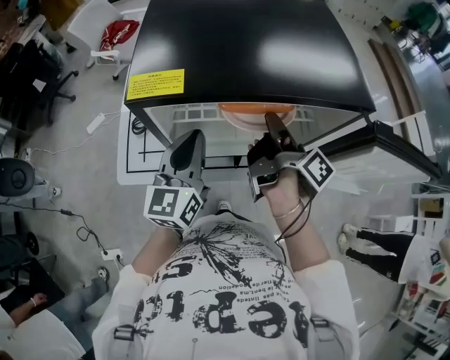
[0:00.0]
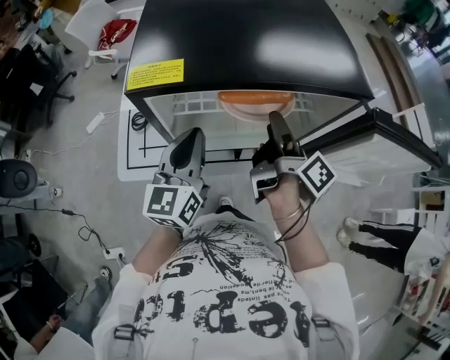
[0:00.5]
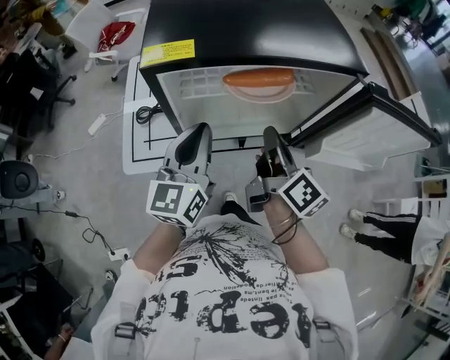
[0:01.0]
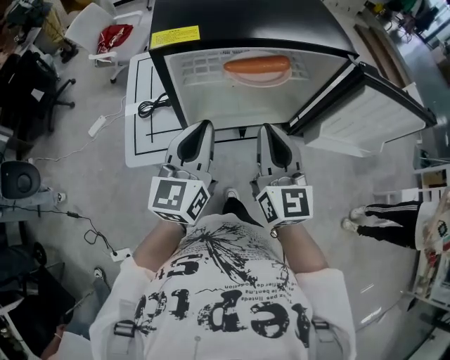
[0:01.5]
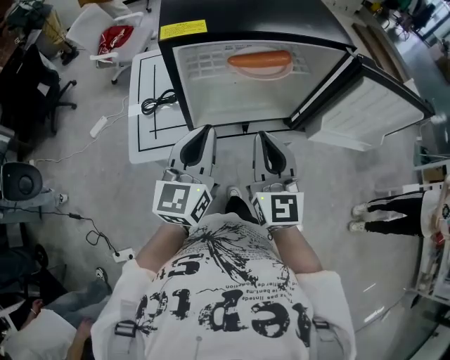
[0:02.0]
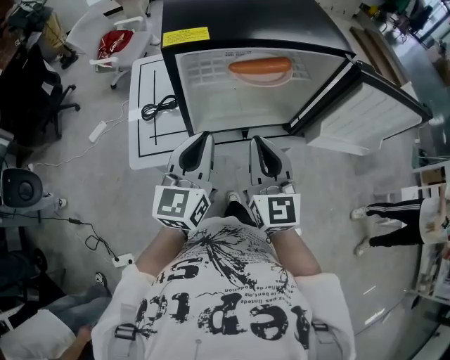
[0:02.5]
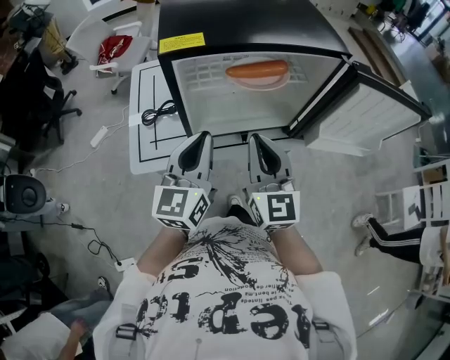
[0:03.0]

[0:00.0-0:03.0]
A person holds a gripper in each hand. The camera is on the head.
0:00.0 to 0:01.5: The left gripper moves approximately 10 cm.

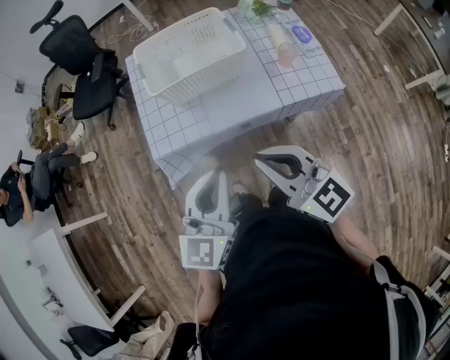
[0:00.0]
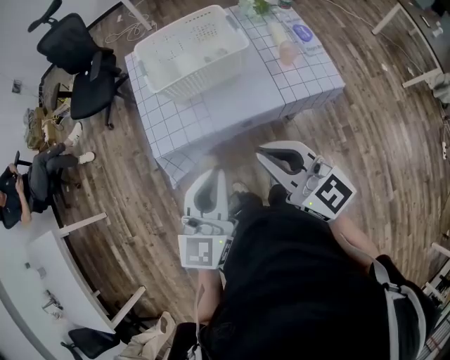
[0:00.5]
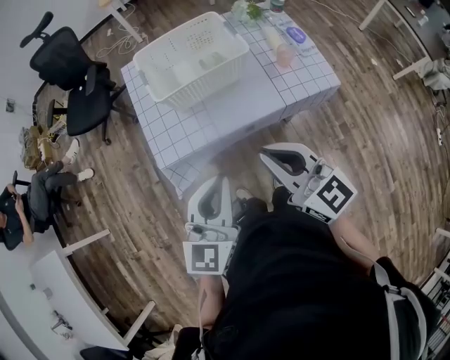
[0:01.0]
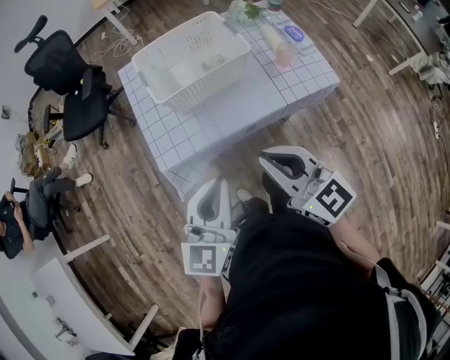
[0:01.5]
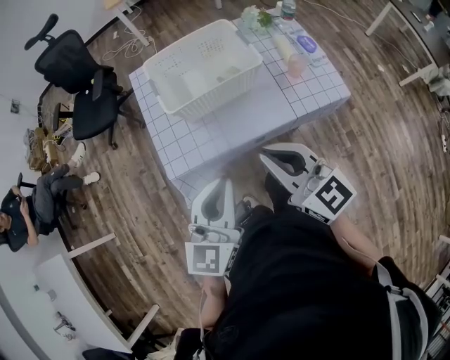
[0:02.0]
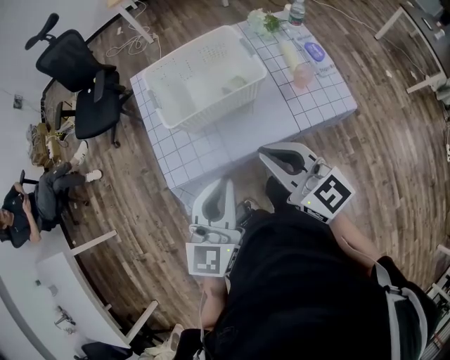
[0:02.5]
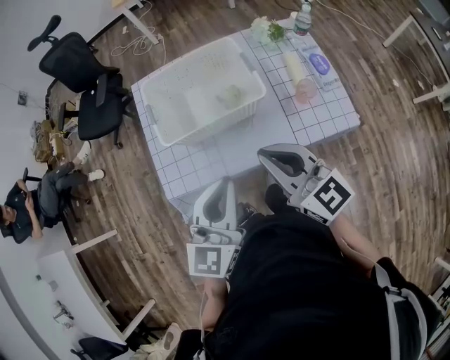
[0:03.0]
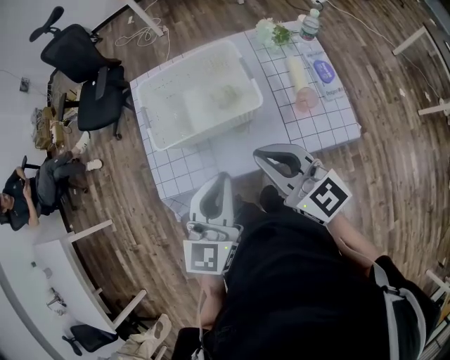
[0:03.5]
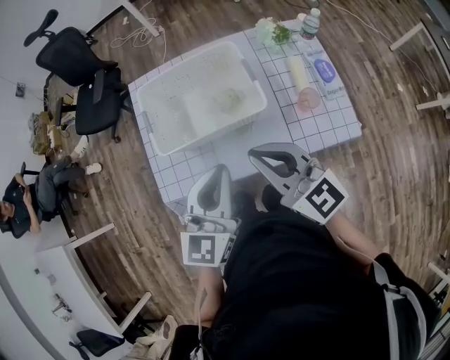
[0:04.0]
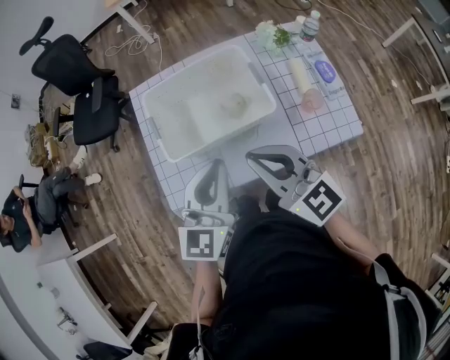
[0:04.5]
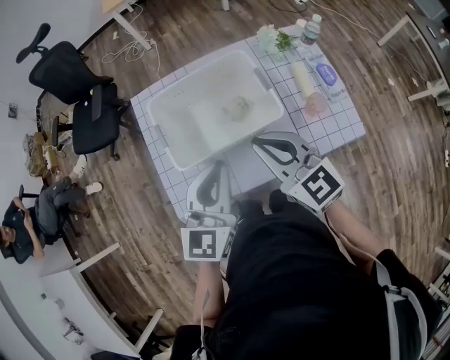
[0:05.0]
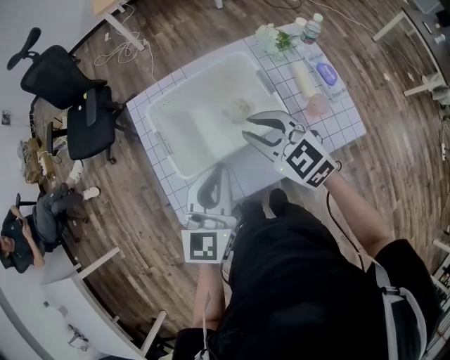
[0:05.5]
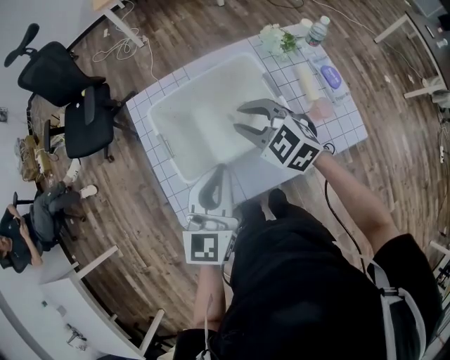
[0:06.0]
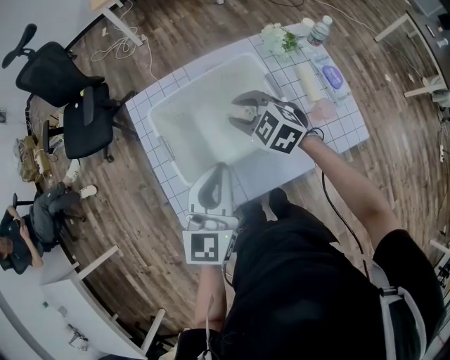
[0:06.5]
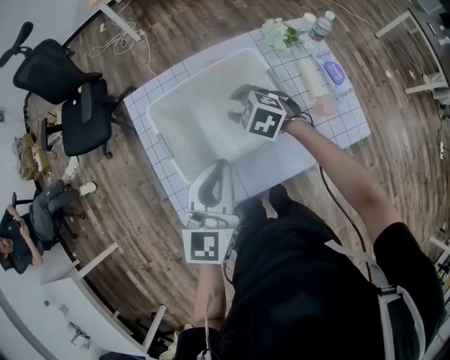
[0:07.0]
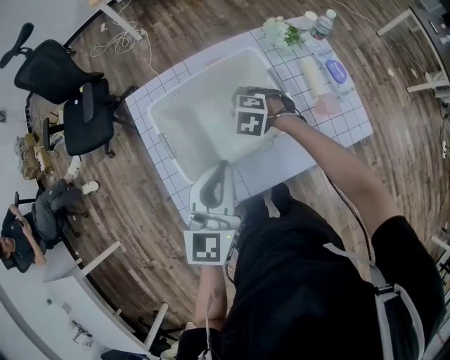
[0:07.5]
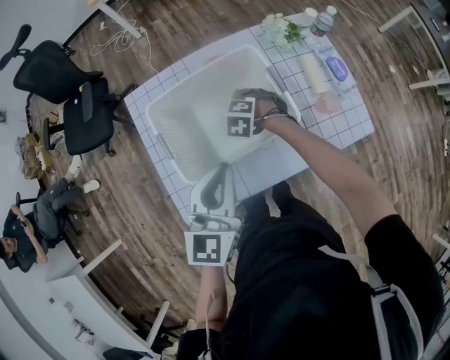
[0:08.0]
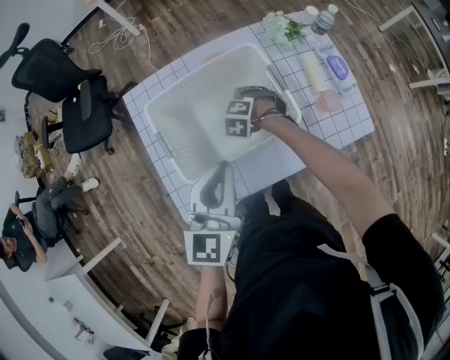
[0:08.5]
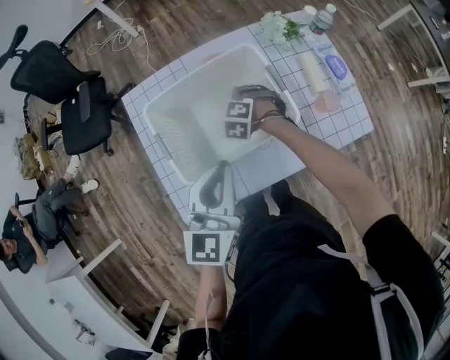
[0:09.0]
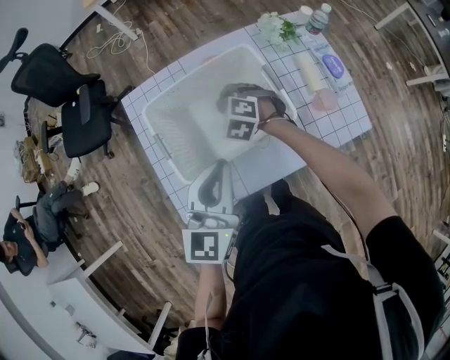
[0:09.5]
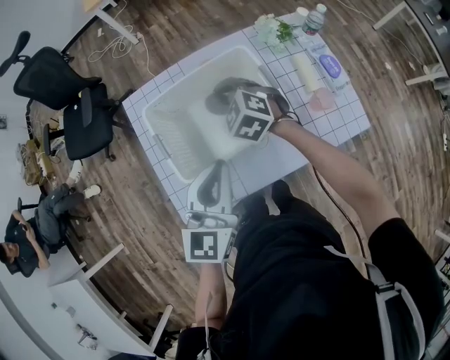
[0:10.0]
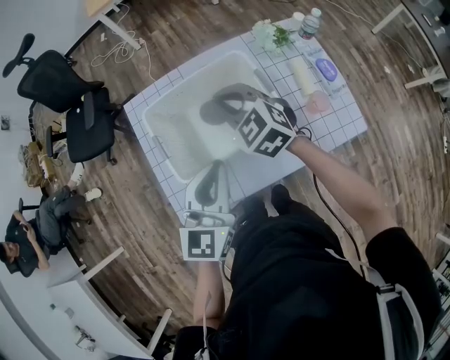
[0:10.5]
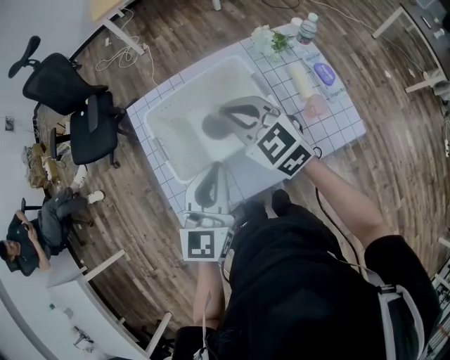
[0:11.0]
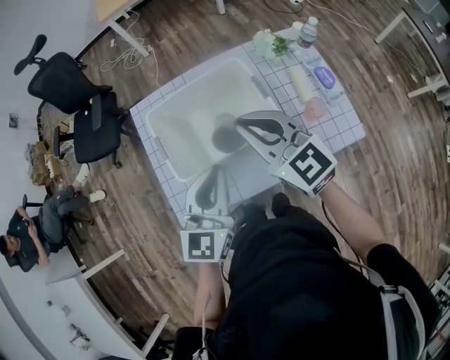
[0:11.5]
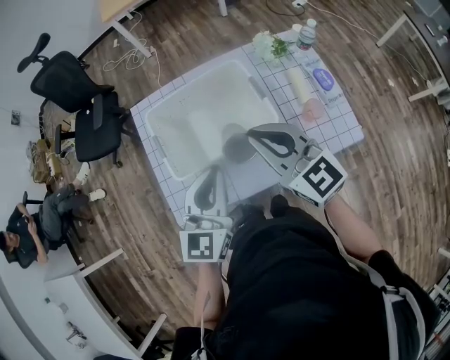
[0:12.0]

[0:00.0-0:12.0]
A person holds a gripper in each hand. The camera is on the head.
0:00.0 to 0:02.0: The left gripper is displaced to the left and forward by approximately 10 cm. Meanwhile the right gripper shifts roughly 5 cm forward.
0:02.0 to 0:04.0: The grippers both shift forward and to the right by some 20 cm.
0:04.0 to 0:06.0: The right gripper shifts some 20 cm forward and downward, tilts its fingers about 30 degrees downward, and opens up, while the left gripper moves forward and to the left, some 10 cm.
0:06.0 to 0:08.0: The right gripper is displaced downward by some 20 cm, and angles its fingers downward, by about 40 degrees.
0:08.0 to 0:10.0: The right gripper shifts some 15 cm upward, rotates roughly 30 degrees, and closes its fingers.
0:10.0 to 0:12.0: The right gripper travels backward and upward by roughly 25 cm, and angles its fingers upward, by about 30 degrees.

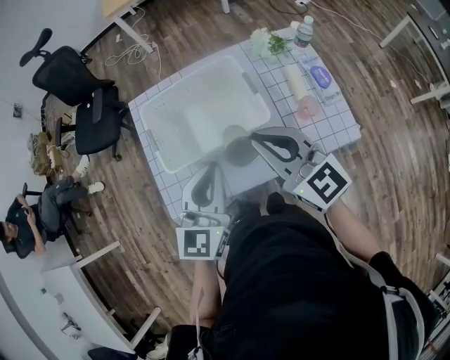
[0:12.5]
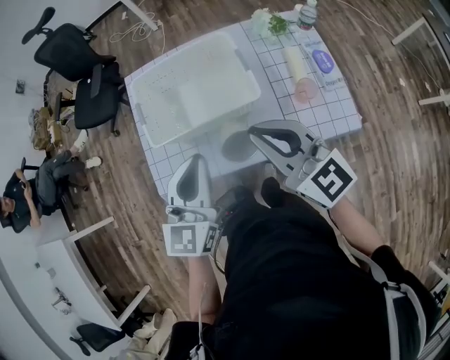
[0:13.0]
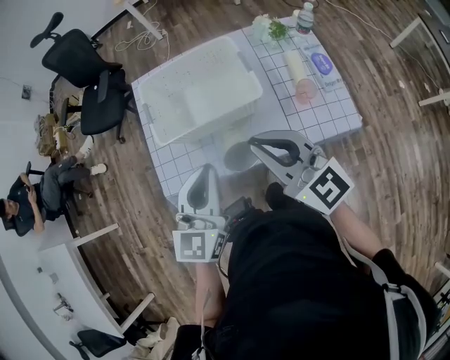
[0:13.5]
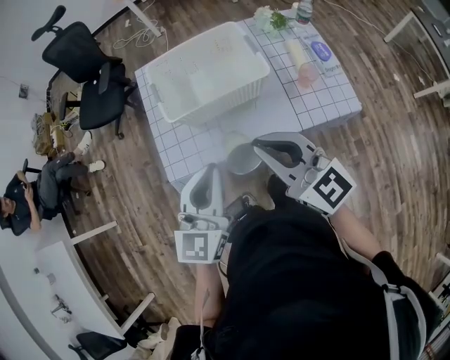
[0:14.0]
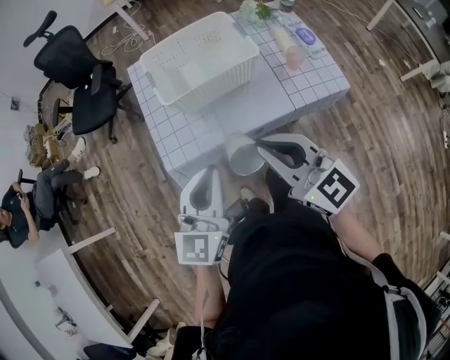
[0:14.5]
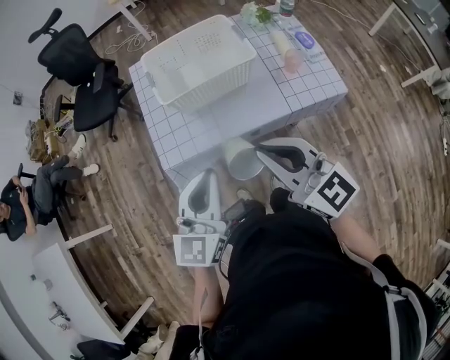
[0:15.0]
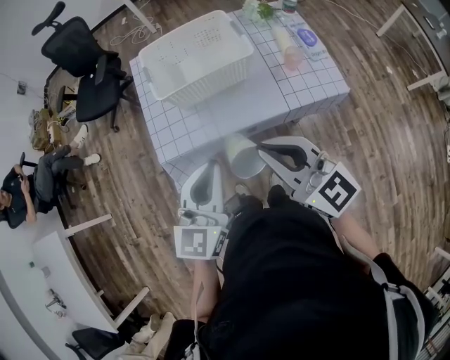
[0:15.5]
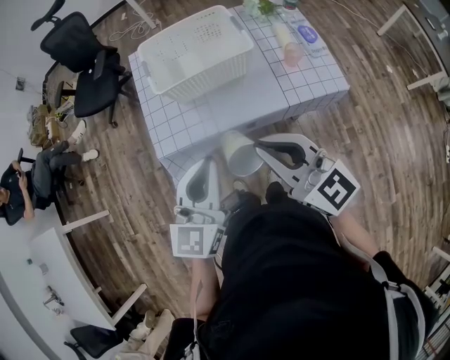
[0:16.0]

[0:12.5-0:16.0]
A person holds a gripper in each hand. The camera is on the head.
0:12.5 to 0:14.5: The two grippers go some 25 cm backward and to the left.
0:14.5 to 0:16.0: The grippers stay close to where they were, moving slightly.

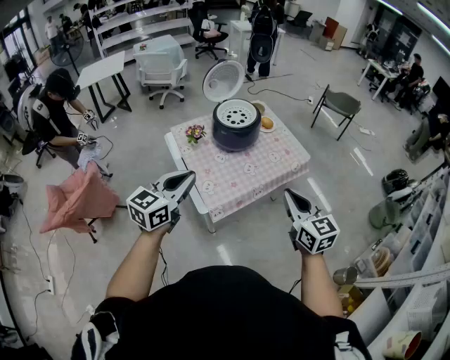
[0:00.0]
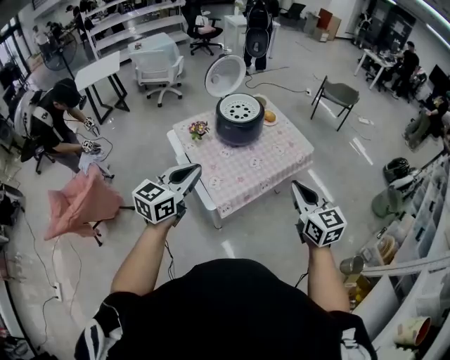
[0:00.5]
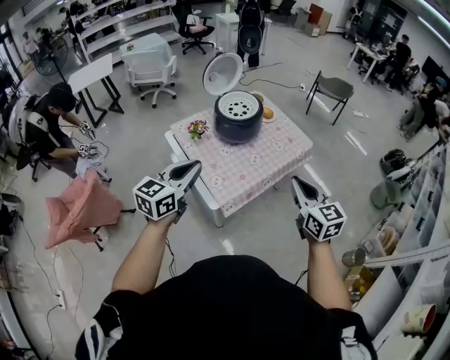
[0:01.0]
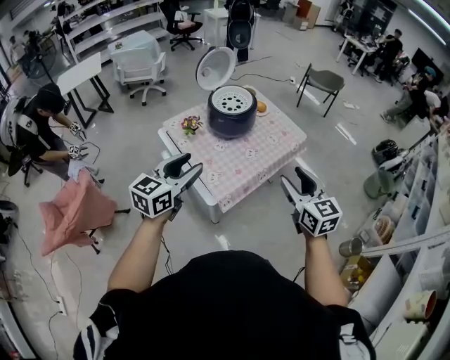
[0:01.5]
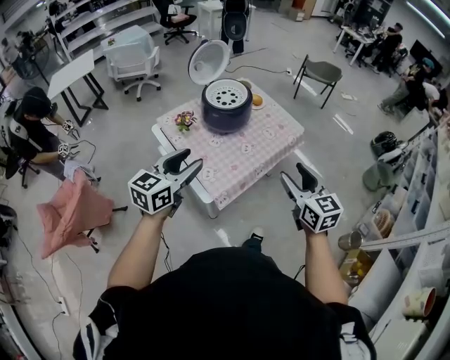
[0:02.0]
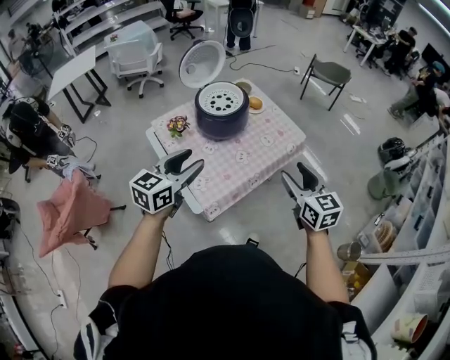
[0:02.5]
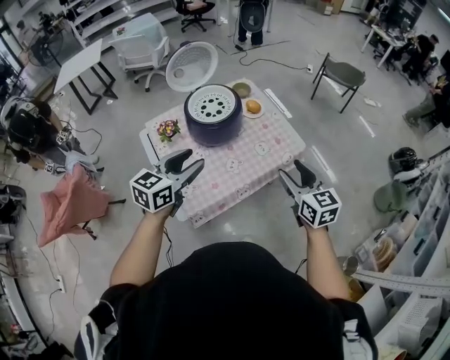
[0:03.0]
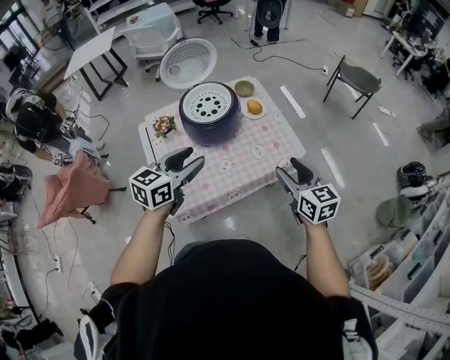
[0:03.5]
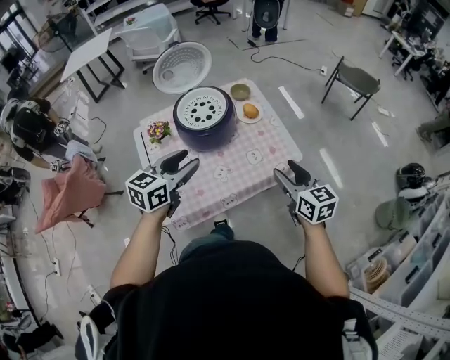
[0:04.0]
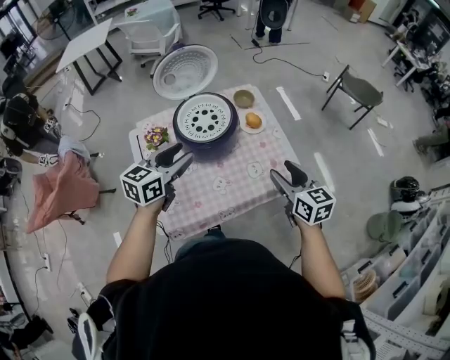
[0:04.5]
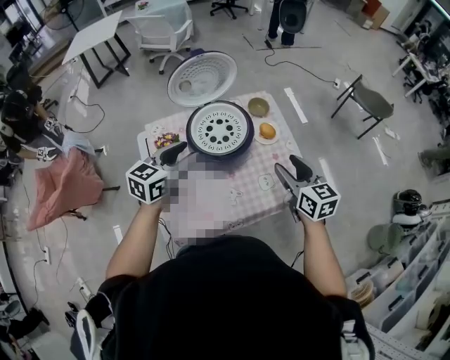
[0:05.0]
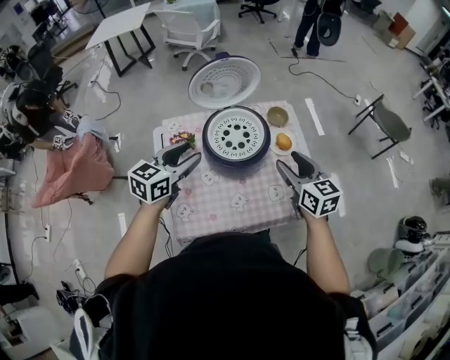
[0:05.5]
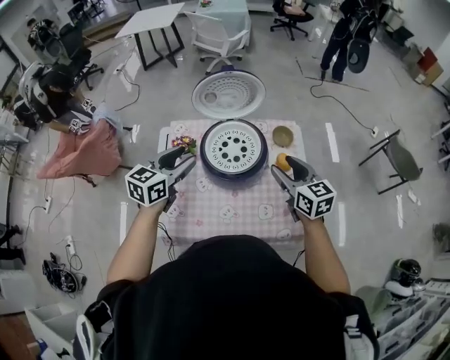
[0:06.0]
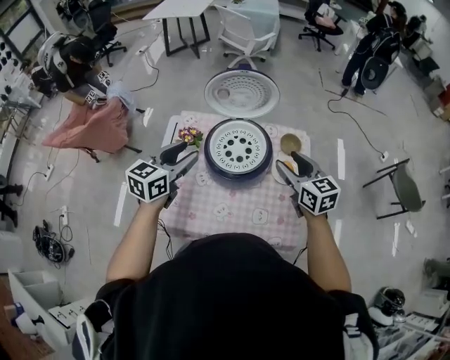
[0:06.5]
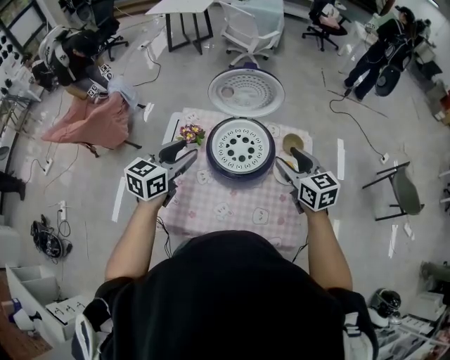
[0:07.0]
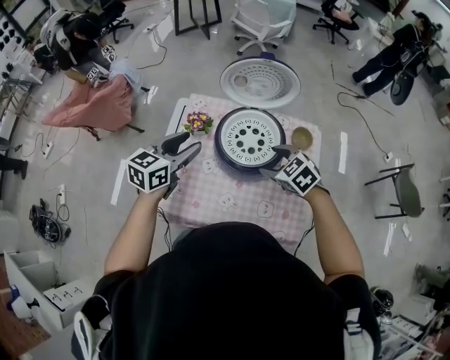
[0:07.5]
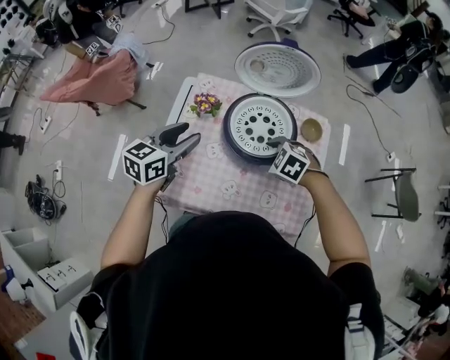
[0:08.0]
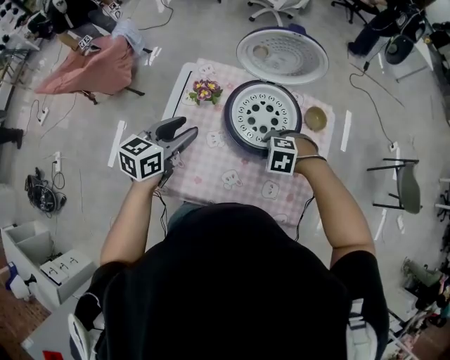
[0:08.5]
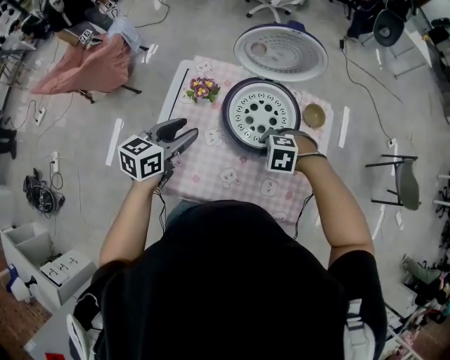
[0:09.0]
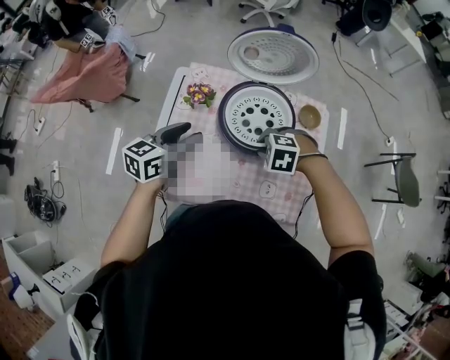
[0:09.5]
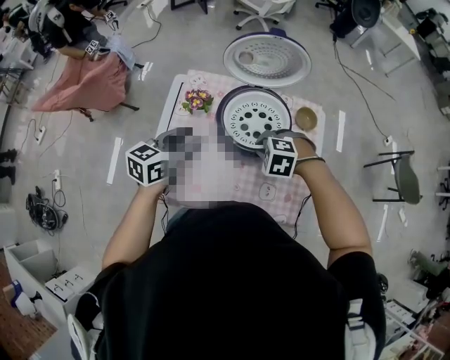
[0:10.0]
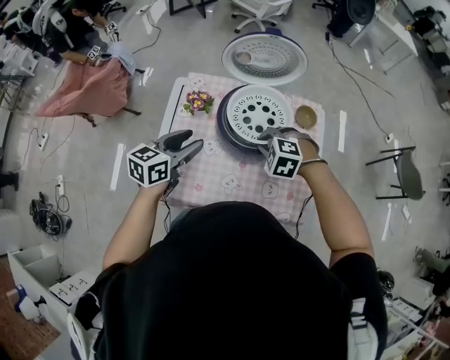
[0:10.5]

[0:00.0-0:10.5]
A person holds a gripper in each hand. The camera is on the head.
0:00.0 to 0:02.0: The left gripper ends up roughly 5 cm from where it was, and opens its fingers; the right gripper opens its fingers.
0:02.0 to 0:04.0: The grippers both shift forward and to the right by some 30 cm. The right gripper turns by roughly 20 degrees.
0:04.0 to 0:06.5: The right gripper changes place by some 35 cm, and swivels about 30 degrees; the left gripper changes place by some 15 cm, and swivels approximately 30 degrees.
0:06.5 to 0:08.5: The left gripper is displaced downward by roughly 10 cm. Meanwhile the right gripper heads downward, covering about 20 cm, and points its fingers approximately 60 degrees further downward.
0:08.5 to 0:10.5: The right gripper heads upward, covering some 5 cm, and closes its fingers.
